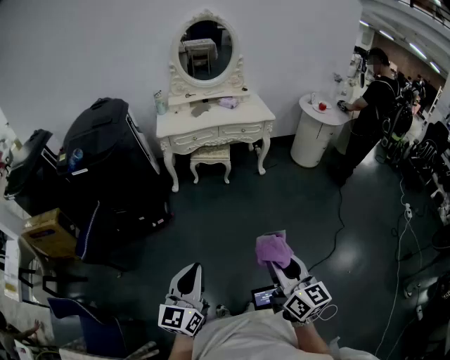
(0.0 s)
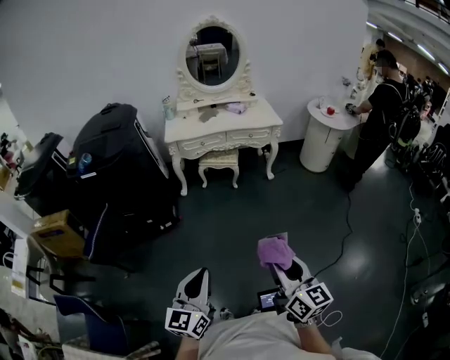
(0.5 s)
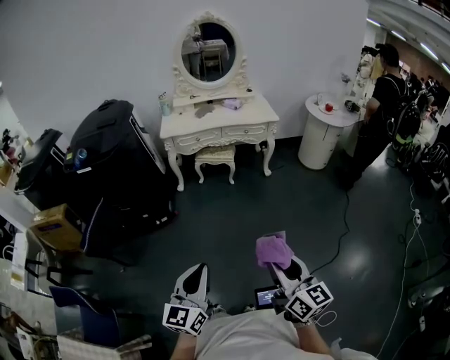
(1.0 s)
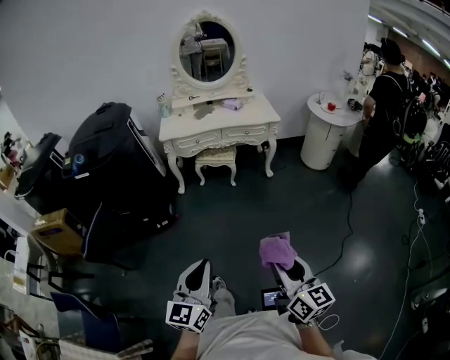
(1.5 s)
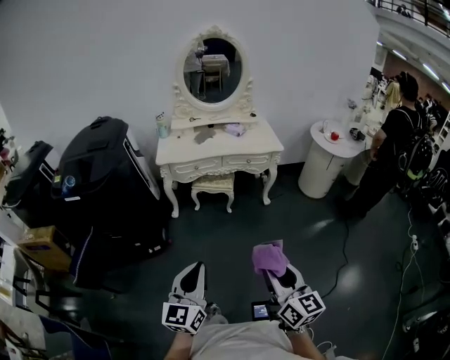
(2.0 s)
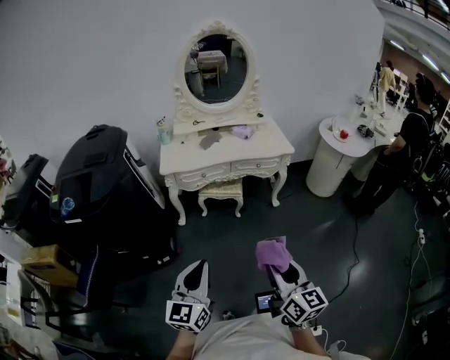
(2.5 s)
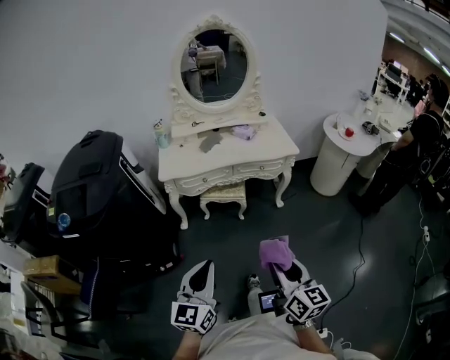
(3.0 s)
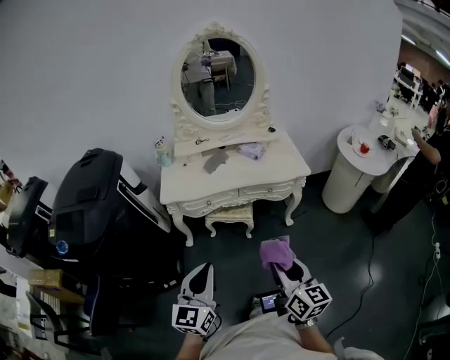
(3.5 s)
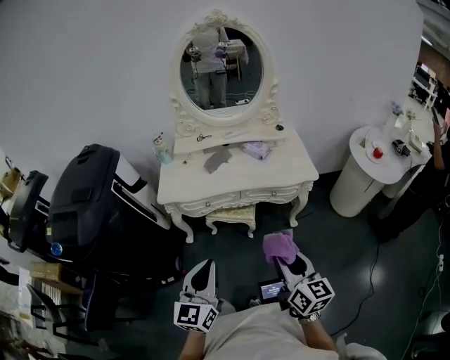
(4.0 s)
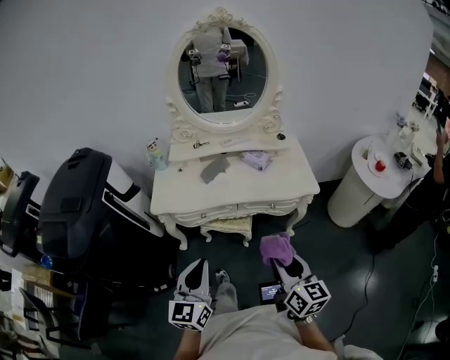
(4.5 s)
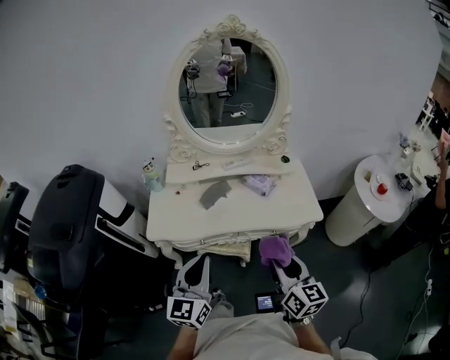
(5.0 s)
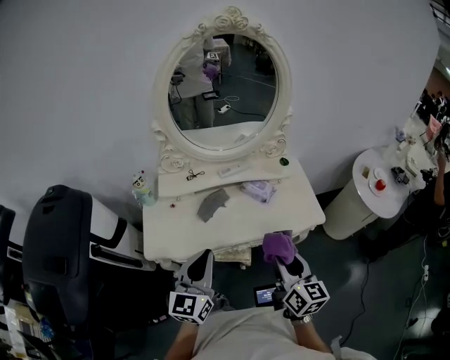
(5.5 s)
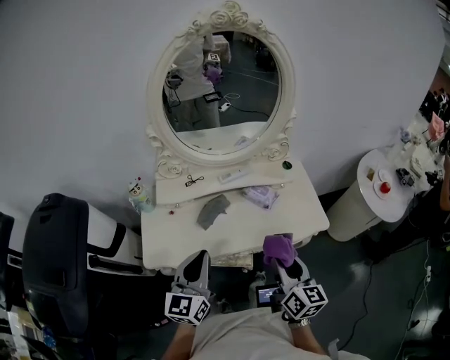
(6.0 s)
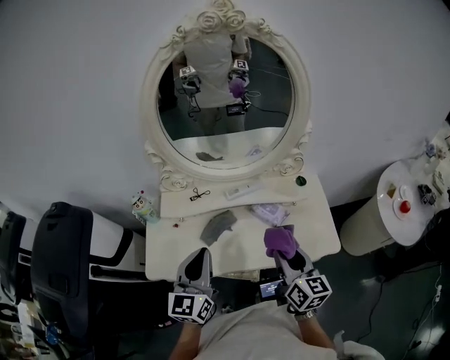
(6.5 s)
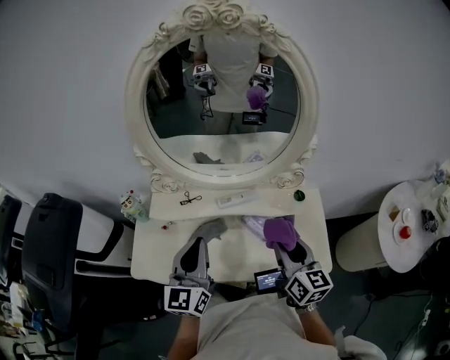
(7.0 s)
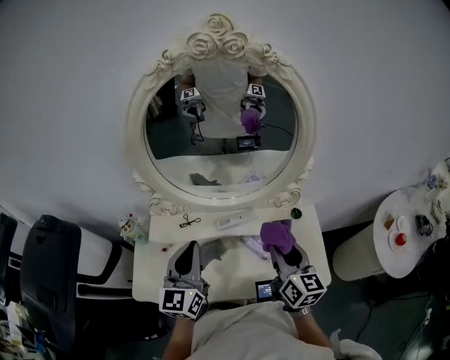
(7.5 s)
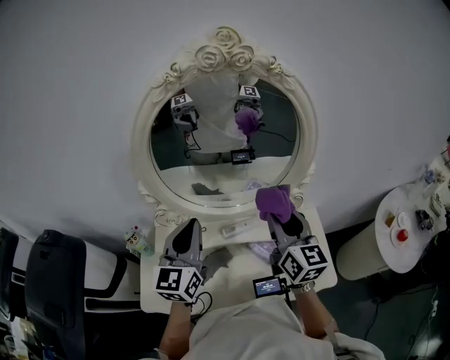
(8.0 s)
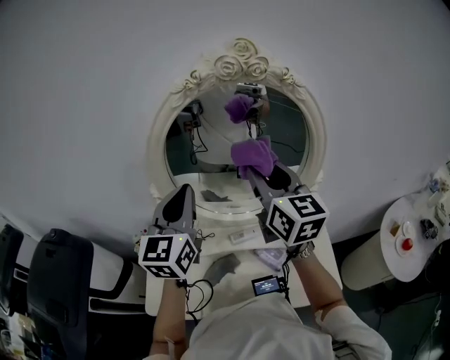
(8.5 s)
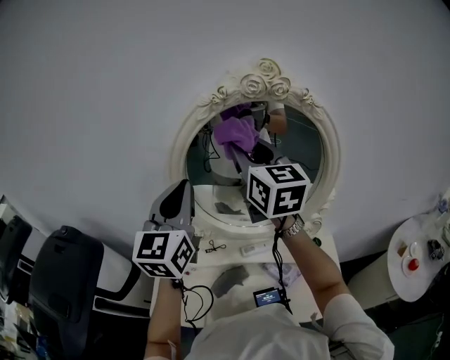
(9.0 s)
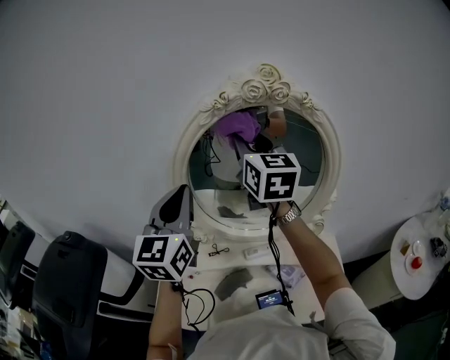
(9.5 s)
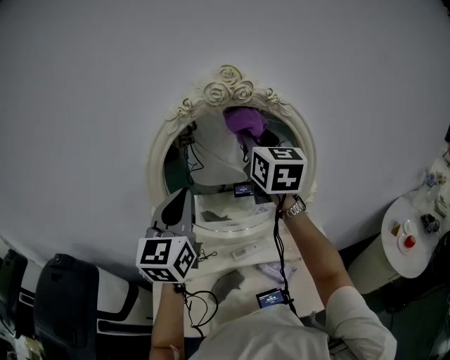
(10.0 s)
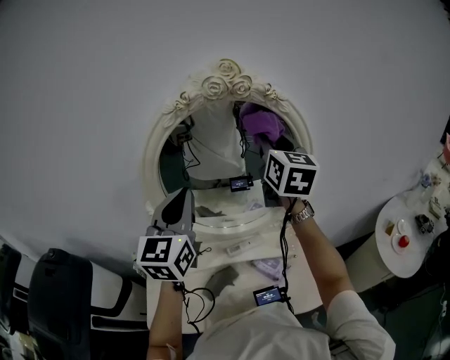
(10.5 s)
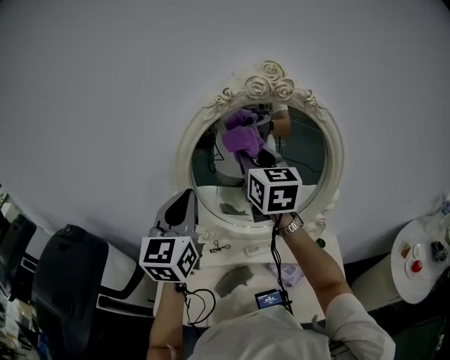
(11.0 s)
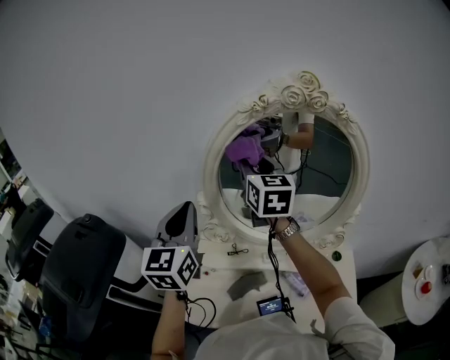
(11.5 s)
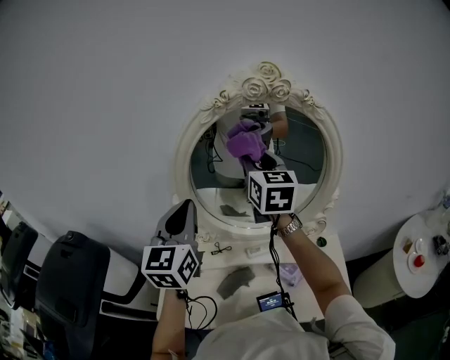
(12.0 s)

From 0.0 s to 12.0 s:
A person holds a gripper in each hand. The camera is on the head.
From 0.0 s to 2.0 s: Both grippers move forward, about 20 cm.
From 2.0 s to 4.0 s: The pair of grippers is taken forward, about 50 cm.
From 4.0 s to 6.0 s: The two grippers go approximately 40 cm forward.
From 6.0 s to 8.0 s: Both grippers move forward, some 35 cm.
From 8.0 s to 10.0 s: The left gripper travels upward by some 15 cm, while the right gripper is displaced upward and forward by approximately 25 cm.
From 10.0 s to 12.0 s: The left gripper moves to the left, approximately 5 cm, while the right gripper moves left and right over about 20 cm, changing direction 2 times.

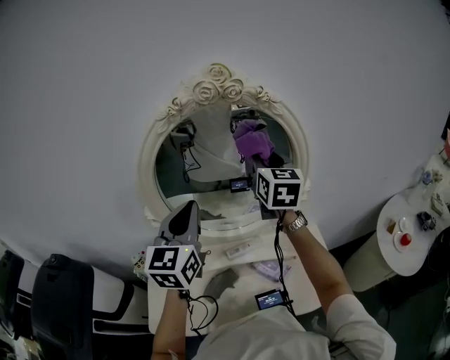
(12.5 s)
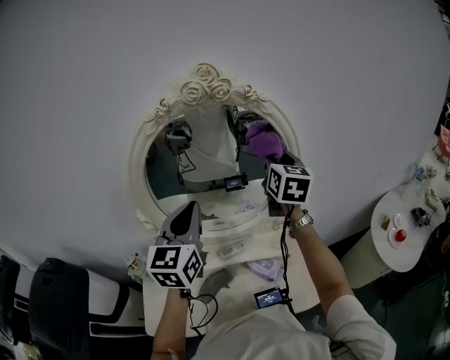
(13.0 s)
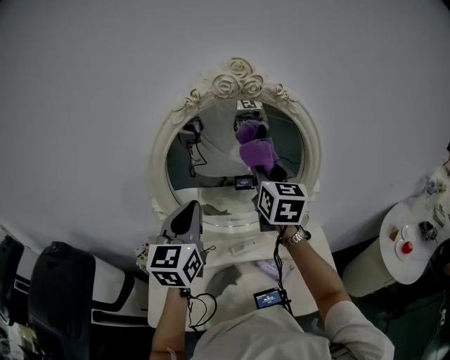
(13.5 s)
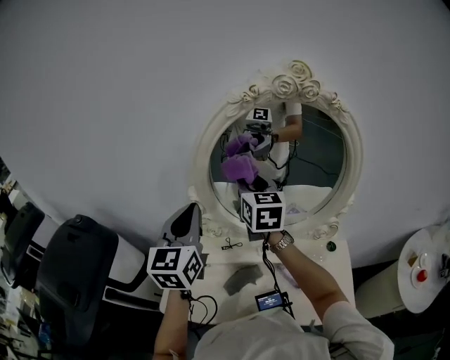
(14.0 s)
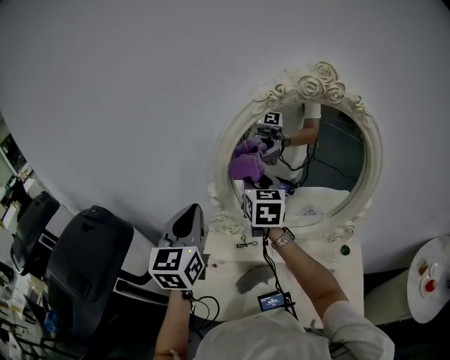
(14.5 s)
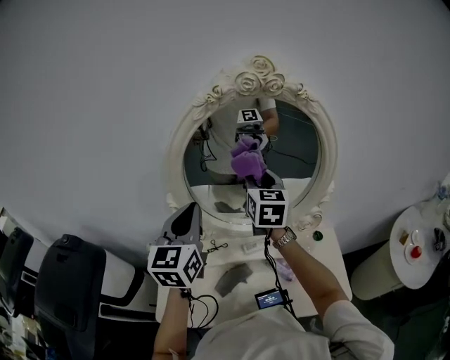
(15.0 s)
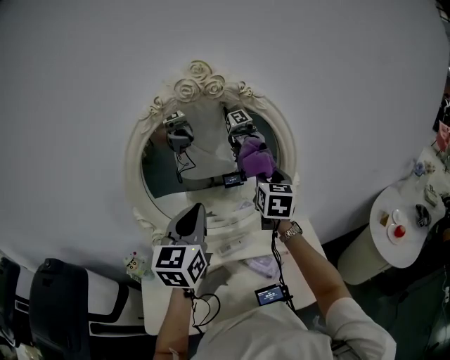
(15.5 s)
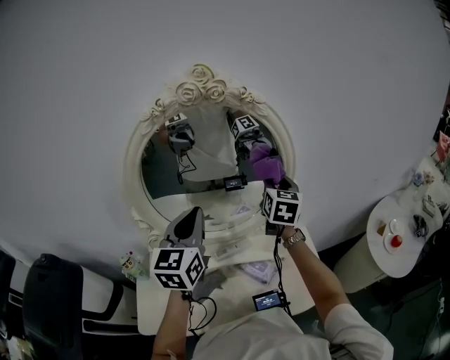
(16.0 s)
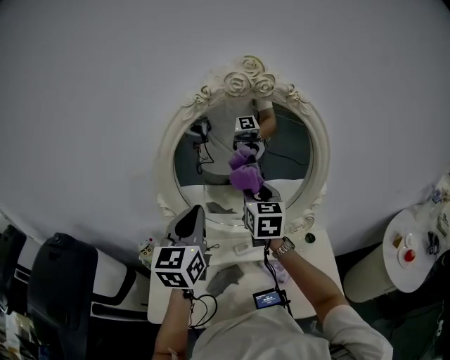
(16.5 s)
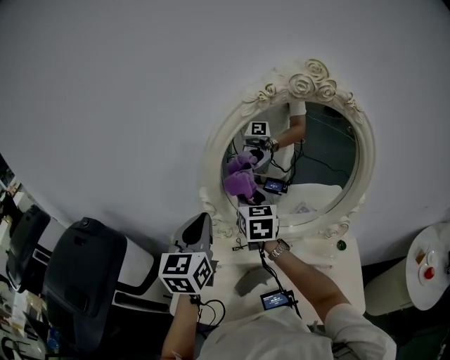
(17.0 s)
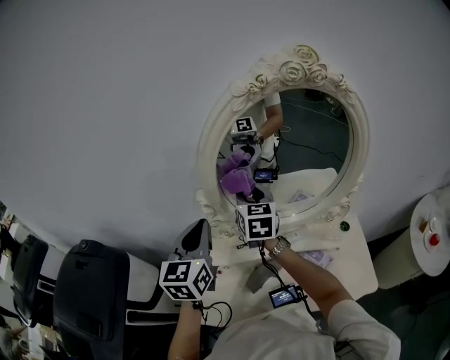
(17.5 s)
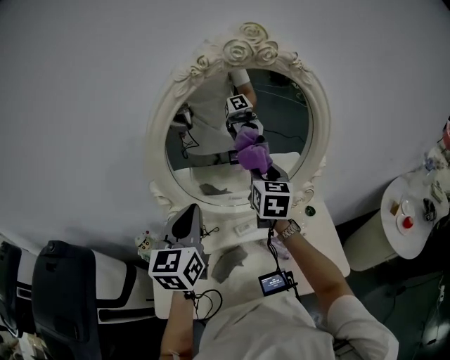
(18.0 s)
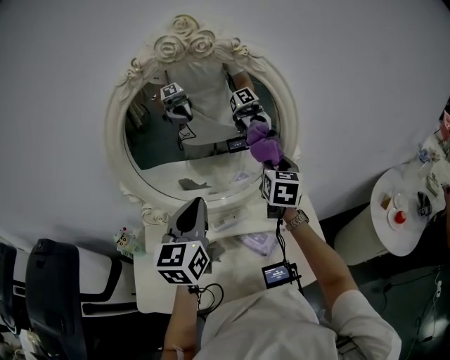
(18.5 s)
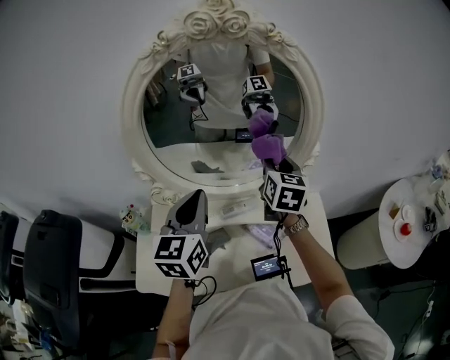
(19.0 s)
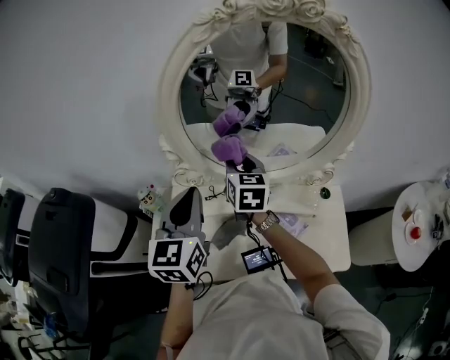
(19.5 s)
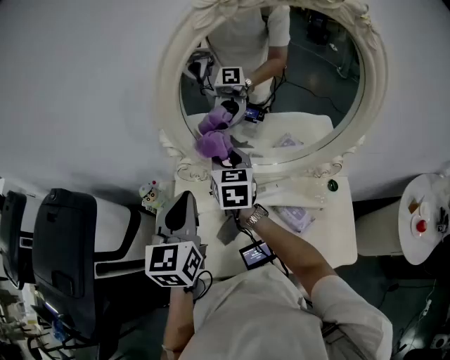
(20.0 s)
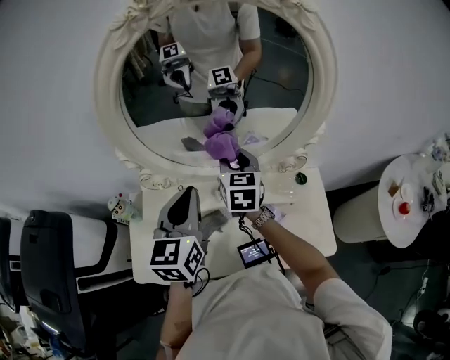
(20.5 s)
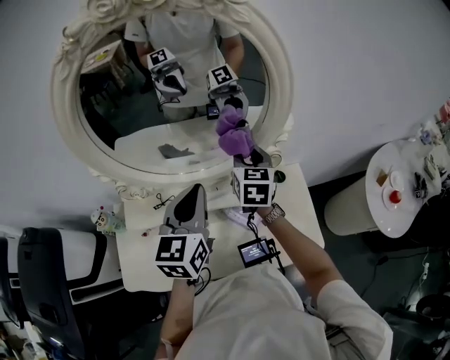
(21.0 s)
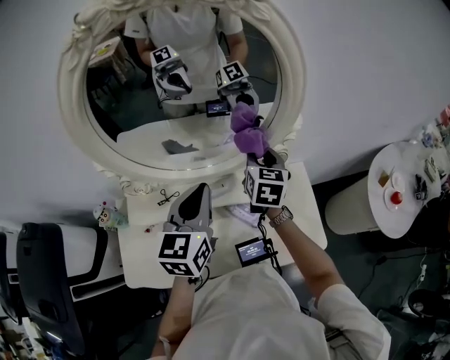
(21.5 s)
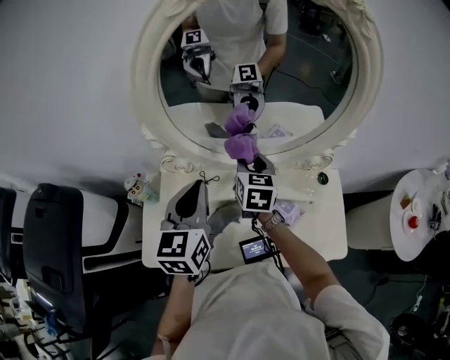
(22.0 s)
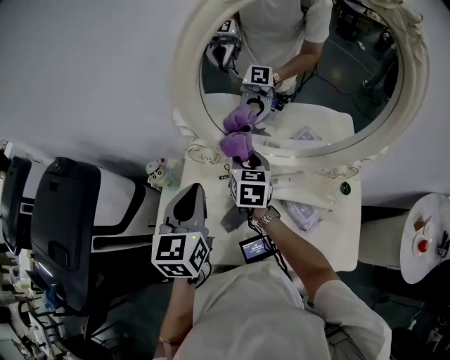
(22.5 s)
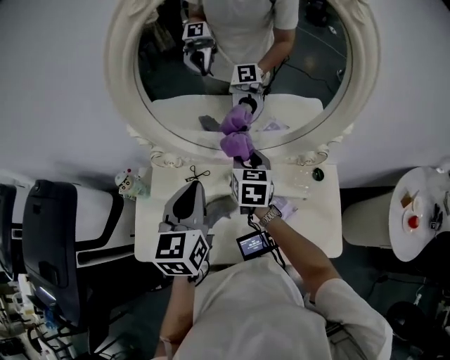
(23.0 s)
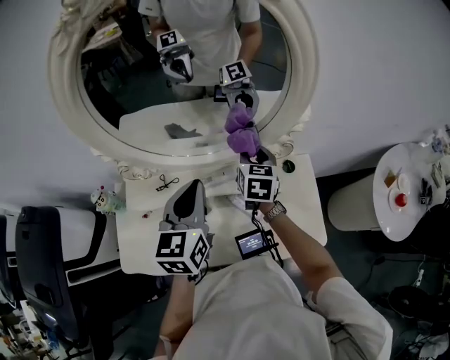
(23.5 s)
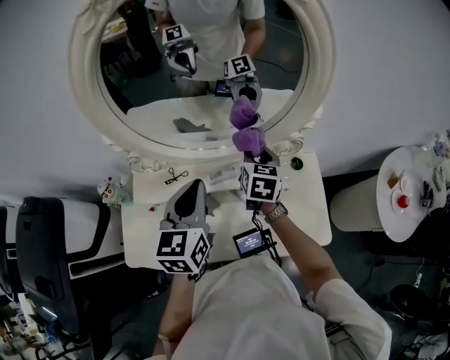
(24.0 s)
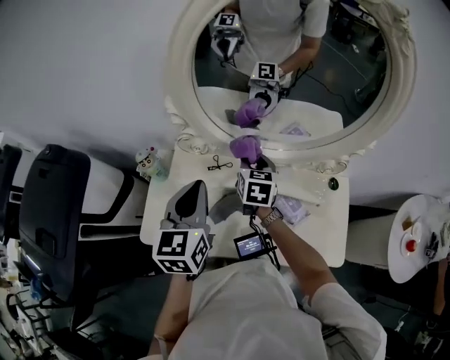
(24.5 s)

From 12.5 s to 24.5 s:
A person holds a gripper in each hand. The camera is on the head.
From 12.5 s to 14.5 s: The grippers both shift to the left by about 20 cm. The left gripper changes its angle by some 20 degrees.
From 16.5 s to 18.5 s: The left gripper is displaced to the right and downward by roughly 10 cm, while the right gripper goes some 20 cm to the right.
From 18.5 s to 20.5 s: The right gripper is displaced to the left and downward by approximately 20 cm; the left gripper goes some 5 cm downward, and travels to the left and back again, approximately 20 cm each way.
From 20.5 s to 22.5 s: The right gripper travels to the left and downward by some 15 cm, while the left gripper shifts about 15 cm to the left.
From 22.5 s to 24.5 s: The left gripper moves about 20 cm to the right and comes back; the right gripper moves some 30 cm to the right and comes back.

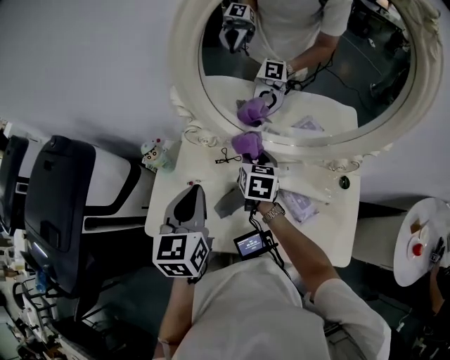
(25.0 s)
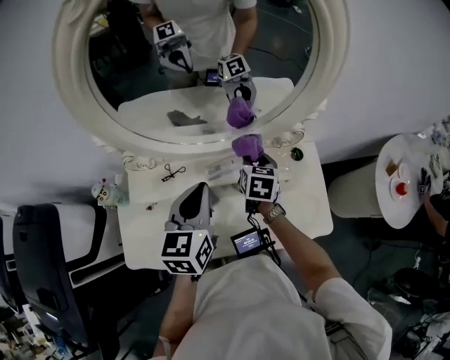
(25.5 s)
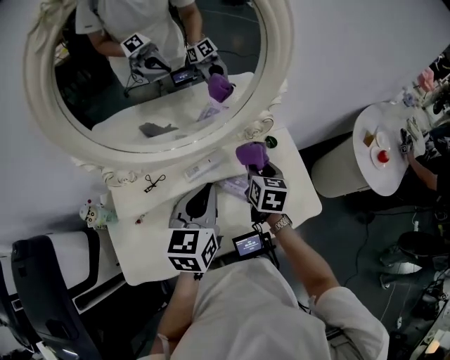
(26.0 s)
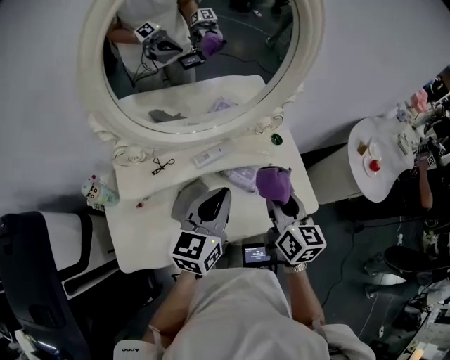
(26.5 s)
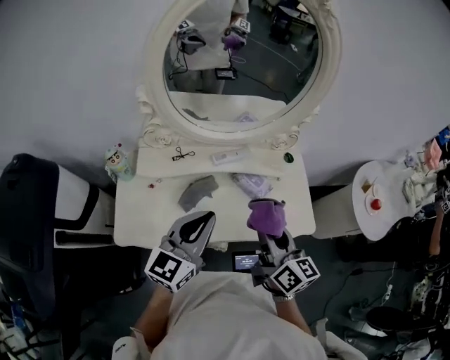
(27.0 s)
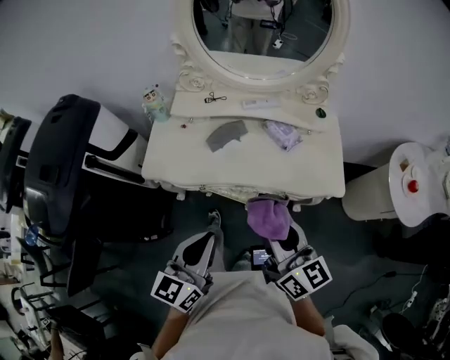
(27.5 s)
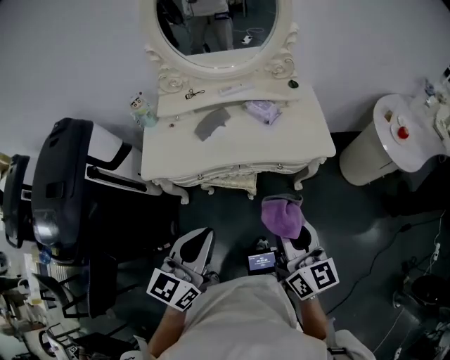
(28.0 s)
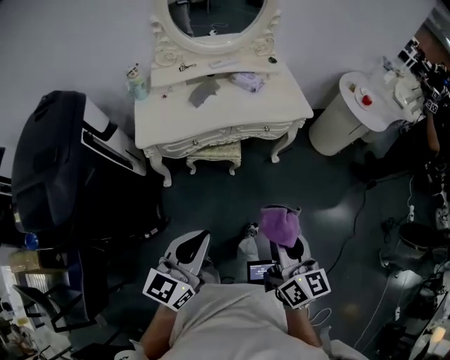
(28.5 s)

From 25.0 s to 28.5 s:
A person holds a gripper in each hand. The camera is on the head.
From 25.0 s to 27.0 s: The right gripper shifts by about 40 cm, and rotates about 30 degrees, while the left gripper ends up about 20 cm from where it was, and swivels about 50 degrees.
From 27.0 s to 28.5 s: The pair of grippers is taken approximately 60 cm.
